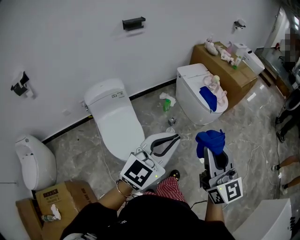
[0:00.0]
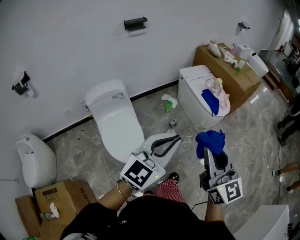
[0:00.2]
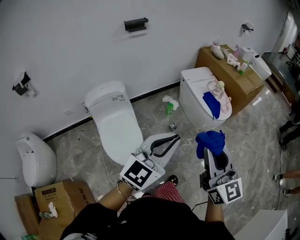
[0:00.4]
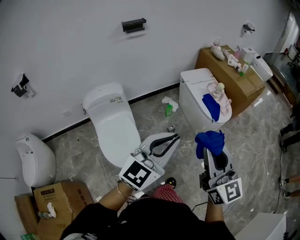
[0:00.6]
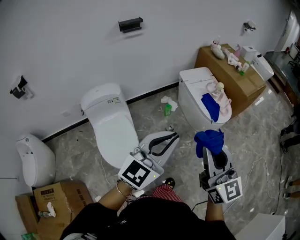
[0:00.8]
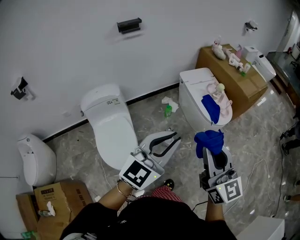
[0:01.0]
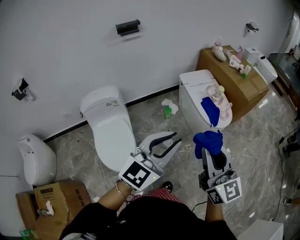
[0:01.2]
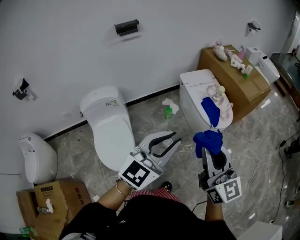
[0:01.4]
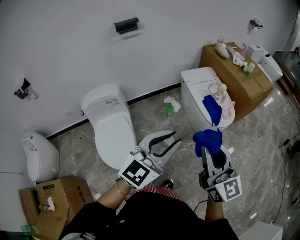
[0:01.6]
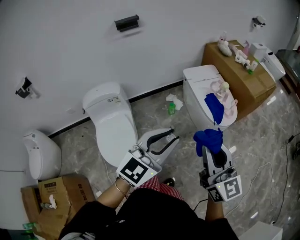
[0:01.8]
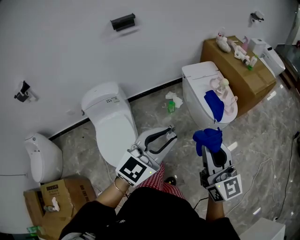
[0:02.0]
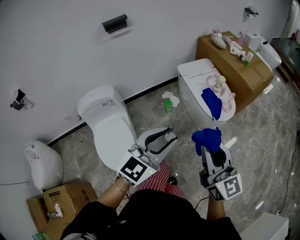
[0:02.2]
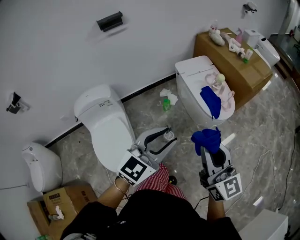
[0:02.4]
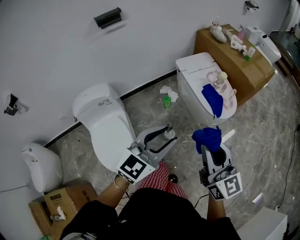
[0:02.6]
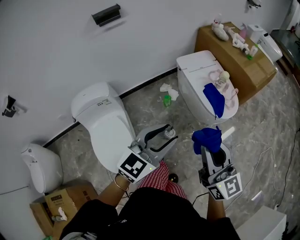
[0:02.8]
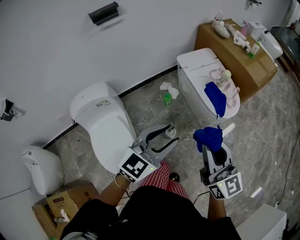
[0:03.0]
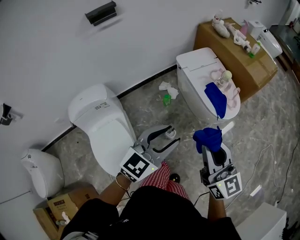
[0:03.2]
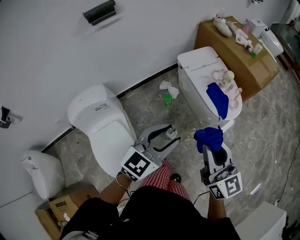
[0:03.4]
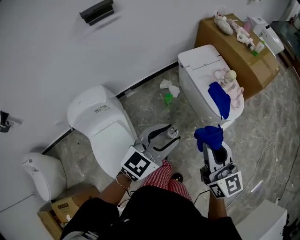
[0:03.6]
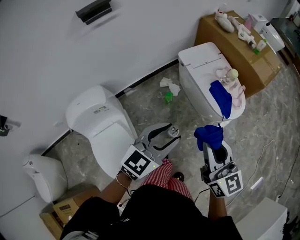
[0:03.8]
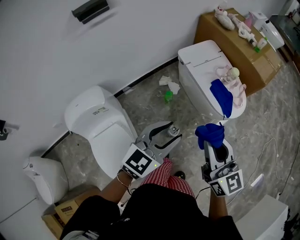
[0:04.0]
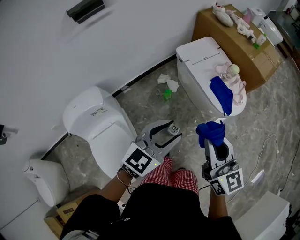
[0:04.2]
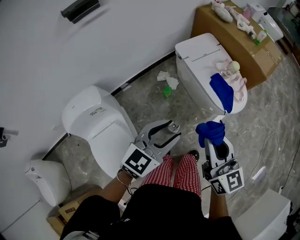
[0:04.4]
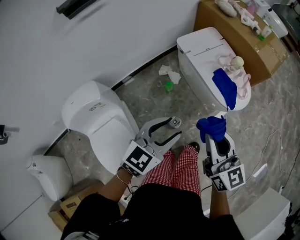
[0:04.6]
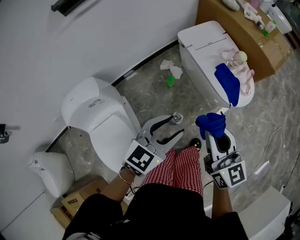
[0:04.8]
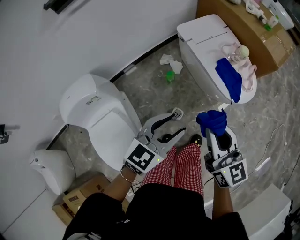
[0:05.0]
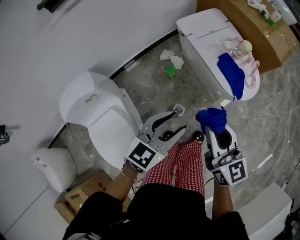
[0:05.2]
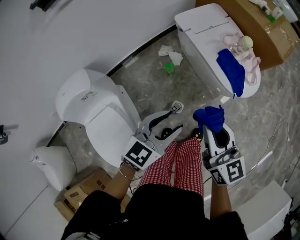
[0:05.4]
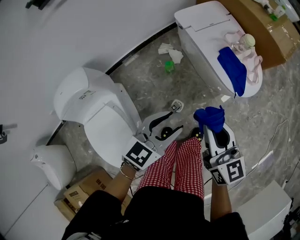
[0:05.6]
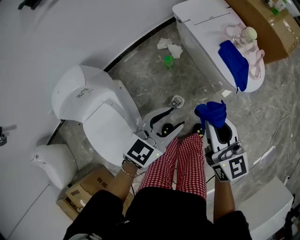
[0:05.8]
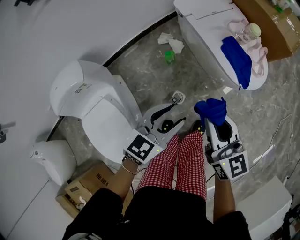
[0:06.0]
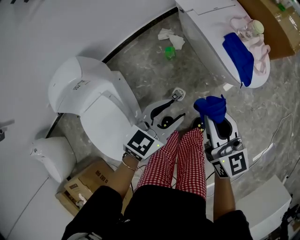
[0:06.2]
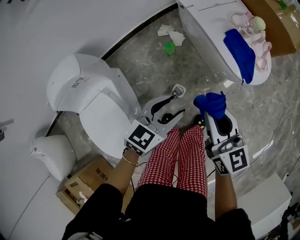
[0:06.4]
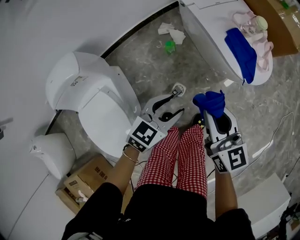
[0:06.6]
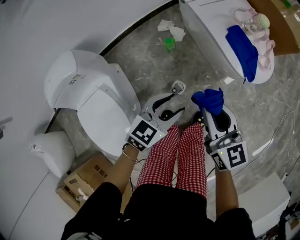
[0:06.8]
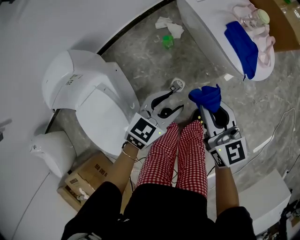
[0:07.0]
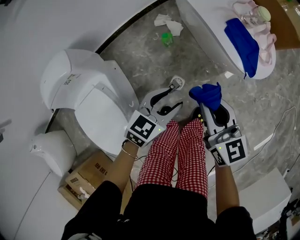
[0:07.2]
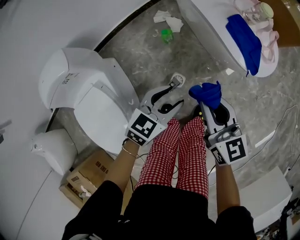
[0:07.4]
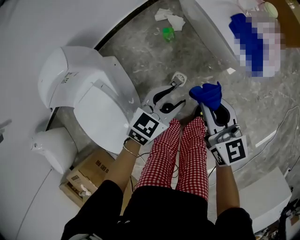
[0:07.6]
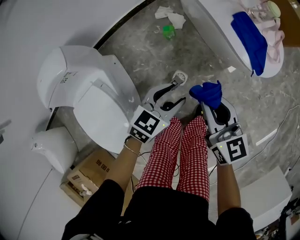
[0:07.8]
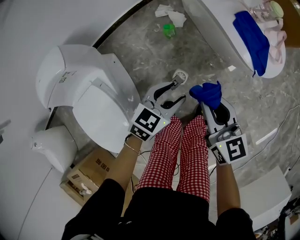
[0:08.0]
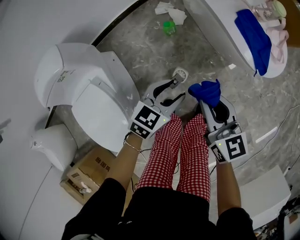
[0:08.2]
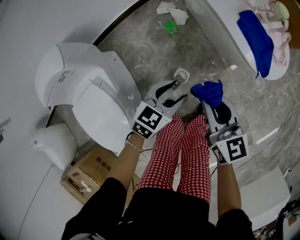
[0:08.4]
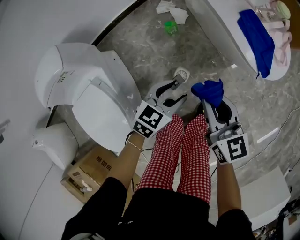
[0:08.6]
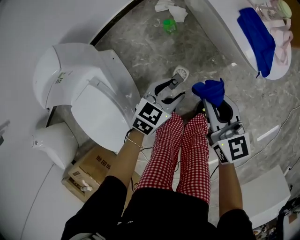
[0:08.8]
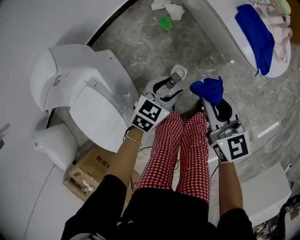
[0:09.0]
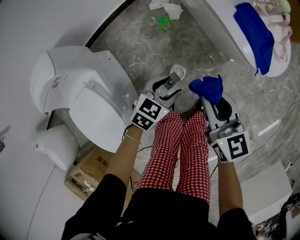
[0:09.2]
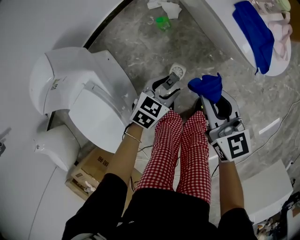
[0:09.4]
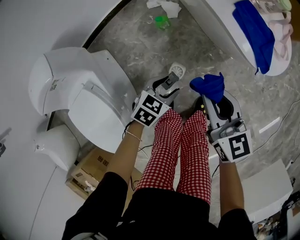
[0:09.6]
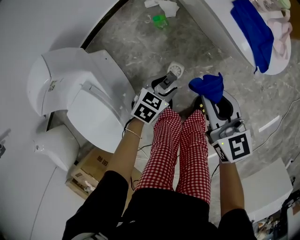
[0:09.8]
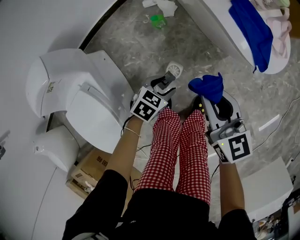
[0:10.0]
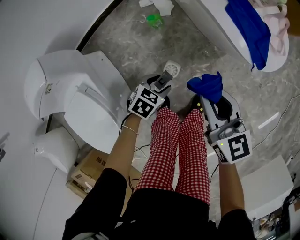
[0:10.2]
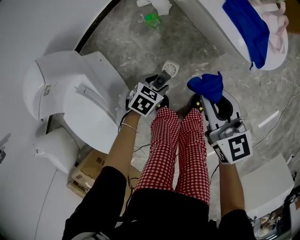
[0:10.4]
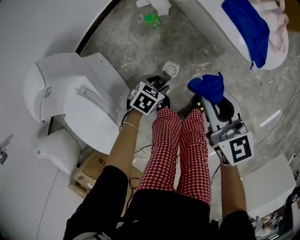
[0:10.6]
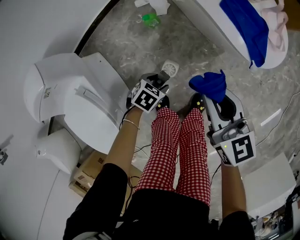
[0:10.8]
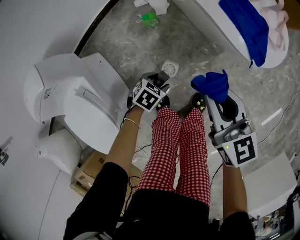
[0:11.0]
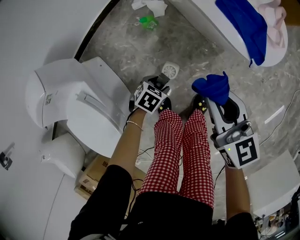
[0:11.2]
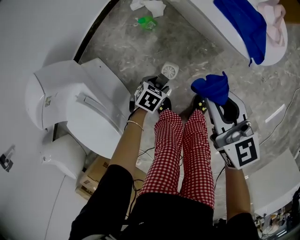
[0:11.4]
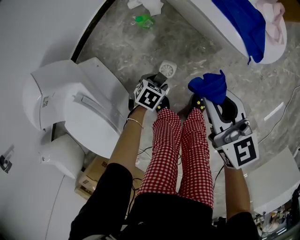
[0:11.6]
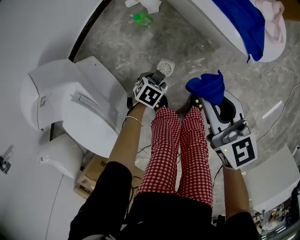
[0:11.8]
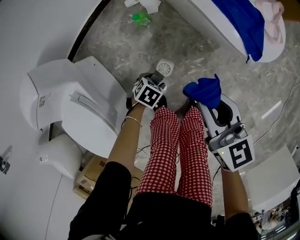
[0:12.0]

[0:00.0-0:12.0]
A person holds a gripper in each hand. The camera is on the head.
0:00.0 to 0:01.6: The two grippers go roughly 20 cm forward and to the right.
0:01.6 to 0:03.0: The right gripper heads forward and downward, covering approximately 15 cm. Meanwhile the left gripper shifts approximately 15 cm forward, downward and to the left, and opens.
0:03.0 to 0:04.4: The grippers both shift forward, downward and to the left by some 15 cm.
0:04.4 to 0:06.0: The grippers both shift downward by approximately 15 cm.
0:06.0 to 0:07.6: Both grippers travel together downward, approximately 10 cm.
0:07.6 to 0:09.0: The left gripper is displaced downward by about 10 cm; the right gripper shifts about 5 cm downward.
0:09.0 to 0:10.4: The left gripper heads downward, covering some 10 cm, and turns by roughly 20 degrees.
0:10.4 to 0:12.0: The left gripper shifts some 5 cm downward.

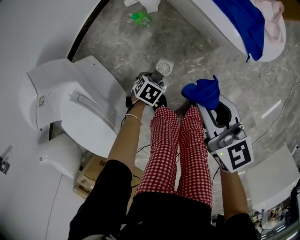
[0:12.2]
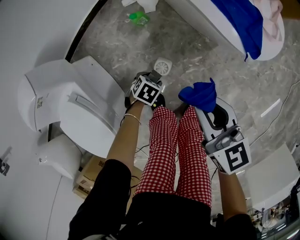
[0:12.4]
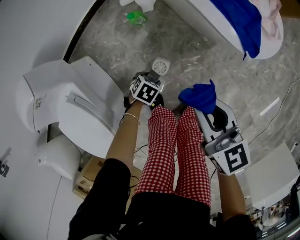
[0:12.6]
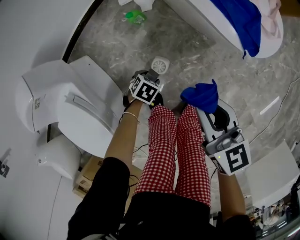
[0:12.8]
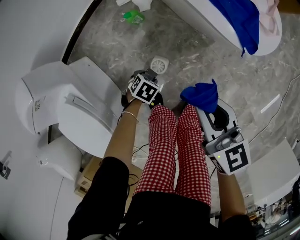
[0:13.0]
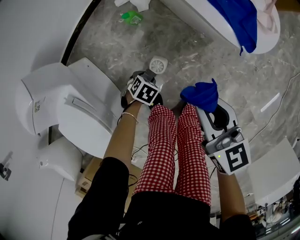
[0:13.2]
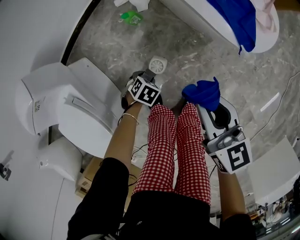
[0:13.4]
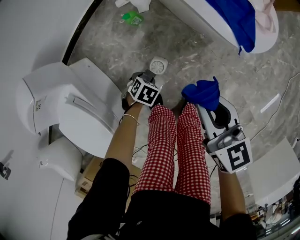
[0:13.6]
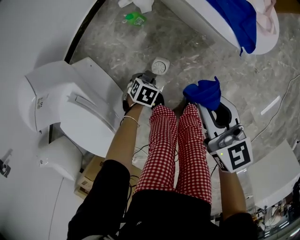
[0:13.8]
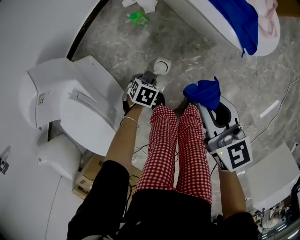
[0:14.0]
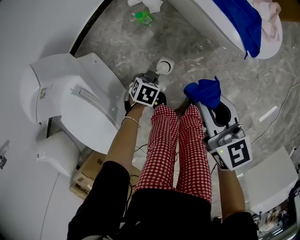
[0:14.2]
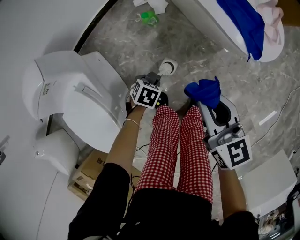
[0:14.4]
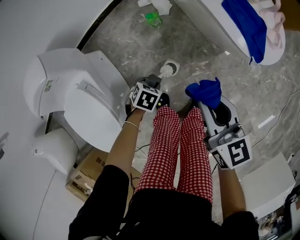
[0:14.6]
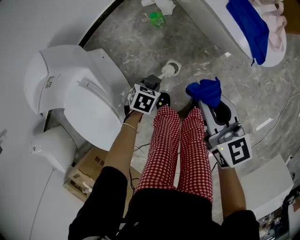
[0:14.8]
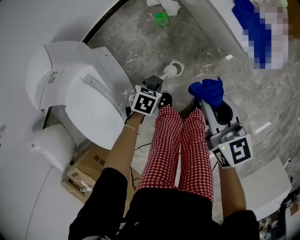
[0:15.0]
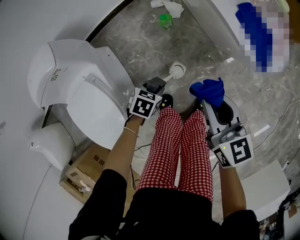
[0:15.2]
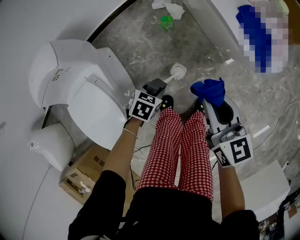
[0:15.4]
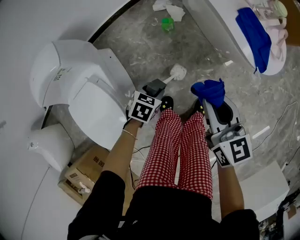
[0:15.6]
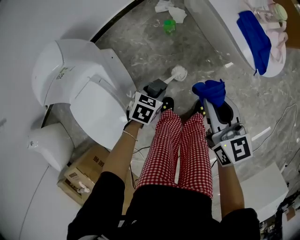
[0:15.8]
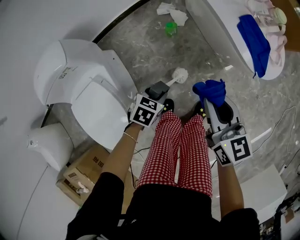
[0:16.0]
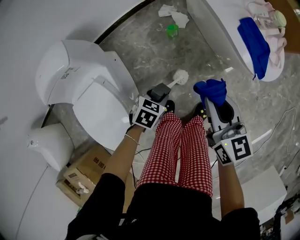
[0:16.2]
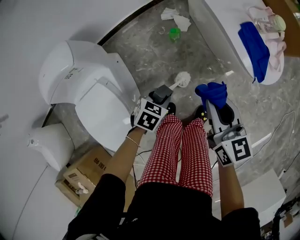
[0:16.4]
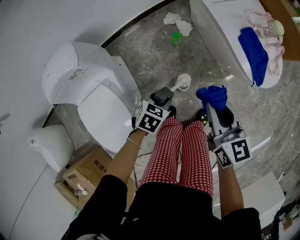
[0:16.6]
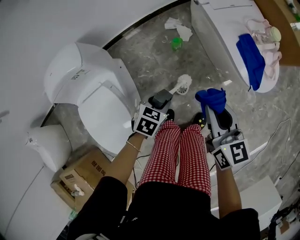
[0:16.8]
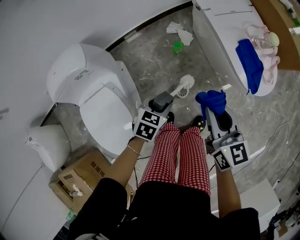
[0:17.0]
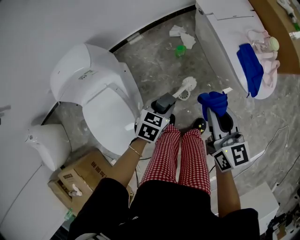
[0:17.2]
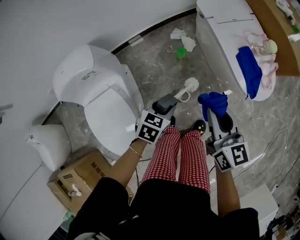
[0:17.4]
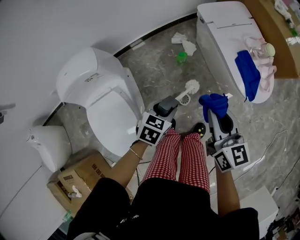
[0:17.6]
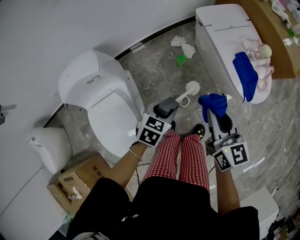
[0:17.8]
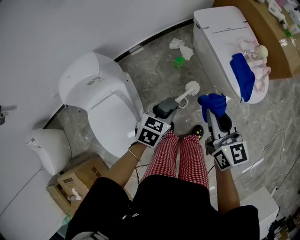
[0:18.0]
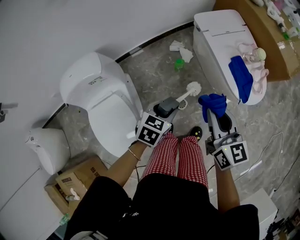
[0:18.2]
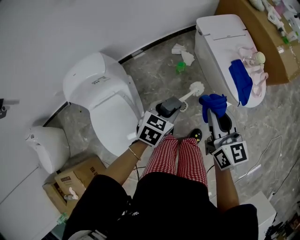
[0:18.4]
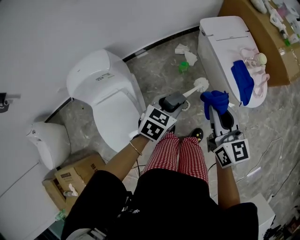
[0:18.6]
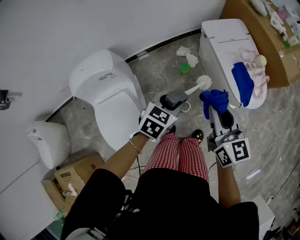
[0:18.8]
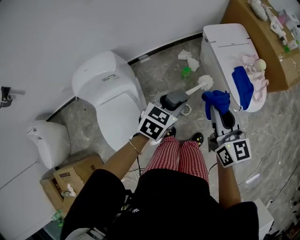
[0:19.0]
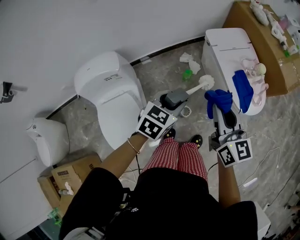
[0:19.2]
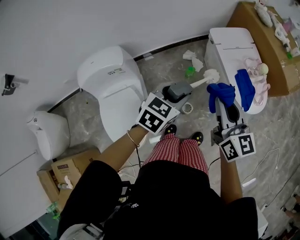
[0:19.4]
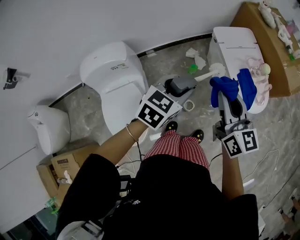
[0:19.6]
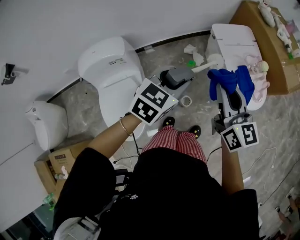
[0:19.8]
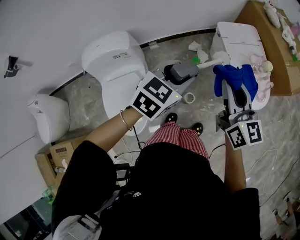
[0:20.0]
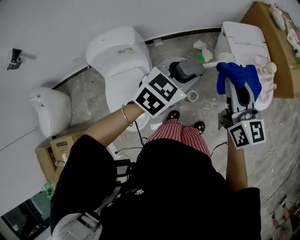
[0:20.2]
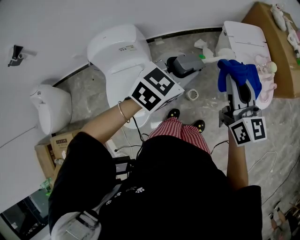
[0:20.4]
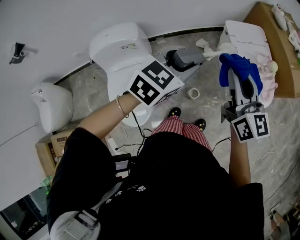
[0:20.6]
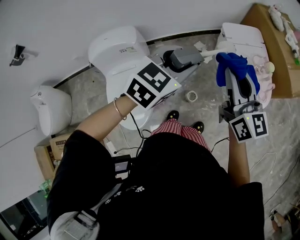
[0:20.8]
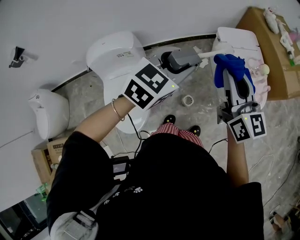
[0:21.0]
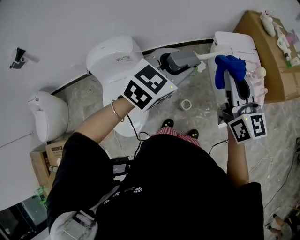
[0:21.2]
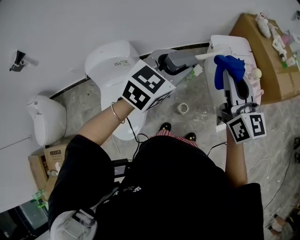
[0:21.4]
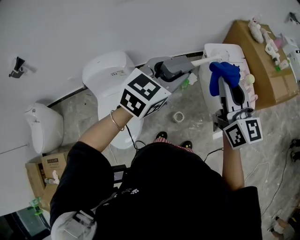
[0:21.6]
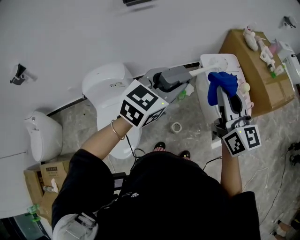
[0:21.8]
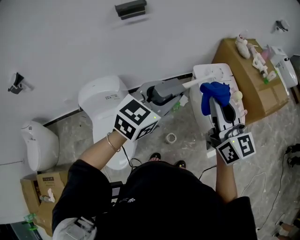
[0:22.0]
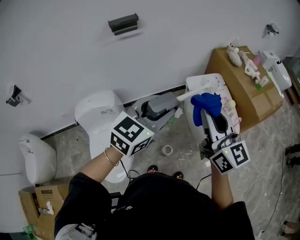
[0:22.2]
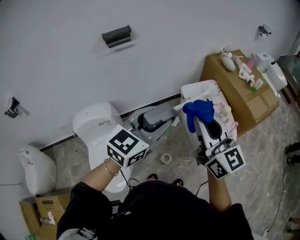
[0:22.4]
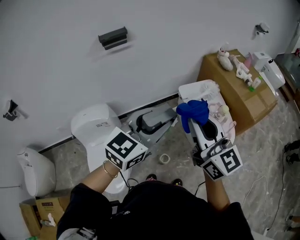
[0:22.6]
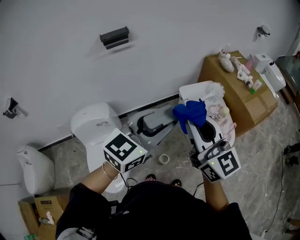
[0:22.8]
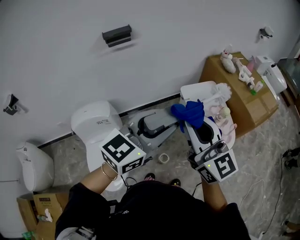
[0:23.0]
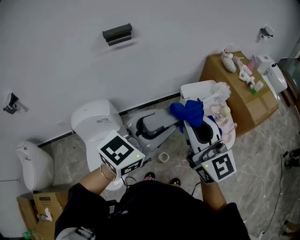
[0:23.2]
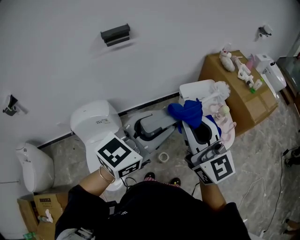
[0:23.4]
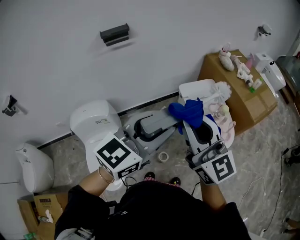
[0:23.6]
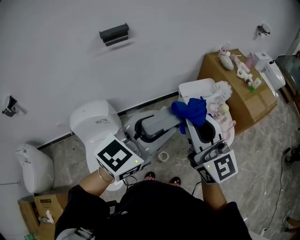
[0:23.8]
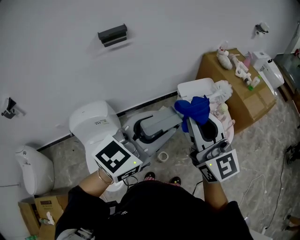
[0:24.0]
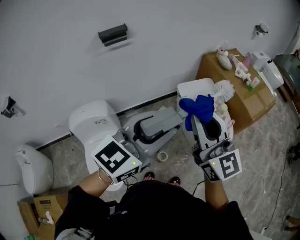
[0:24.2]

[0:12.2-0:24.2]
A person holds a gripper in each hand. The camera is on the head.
0:12.2 to 0:13.8: There are only small adjustments of the grippers.
0:13.8 to 0:15.2: The right gripper moves roughly 10 cm. The left gripper goes about 10 cm upward, and swivels about 20 degrees.
0:15.2 to 0:16.6: The left gripper shifts roughly 10 cm upward; the right gripper is displaced upward by some 5 cm.
0:16.6 to 0:18.2: Both grippers travel together upward, approximately 15 cm.
0:18.2 to 0:19.8: The right gripper travels upward by about 10 cm, while the left gripper goes roughly 20 cm upward.
0:19.8 to 0:21.2: The grippers both shift upward by roughly 10 cm.
0:21.2 to 0:22.6: The right gripper goes some 10 cm upward, while the left gripper goes some 10 cm upward and to the right.
0:22.6 to 0:24.2: The left gripper changes place by approximately 5 cm.
